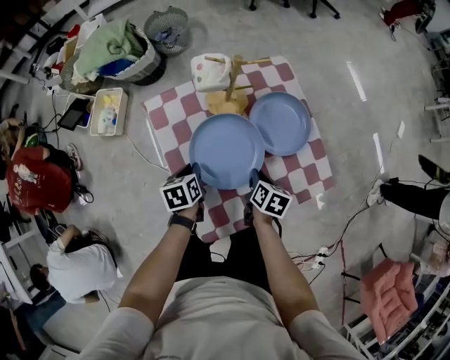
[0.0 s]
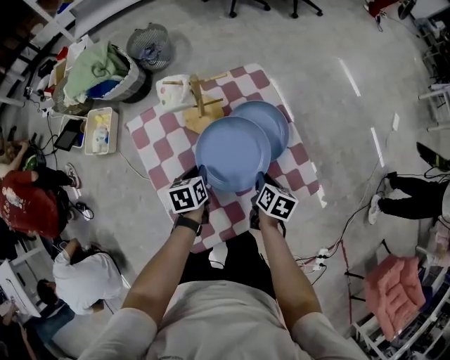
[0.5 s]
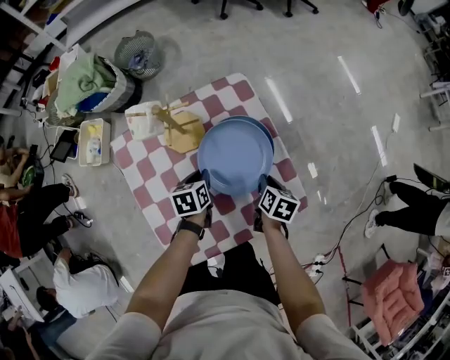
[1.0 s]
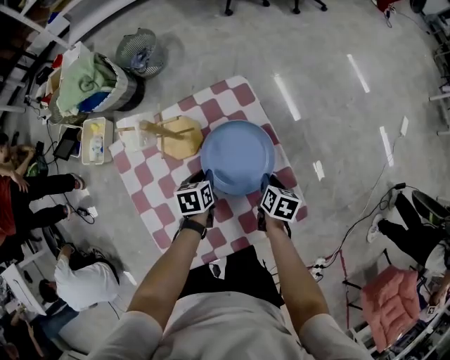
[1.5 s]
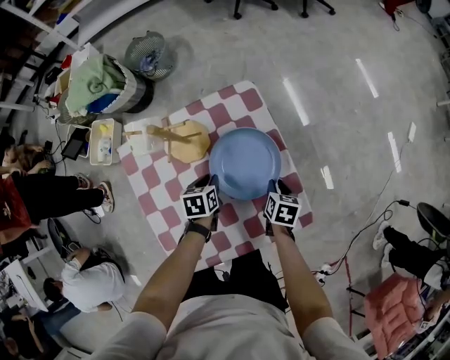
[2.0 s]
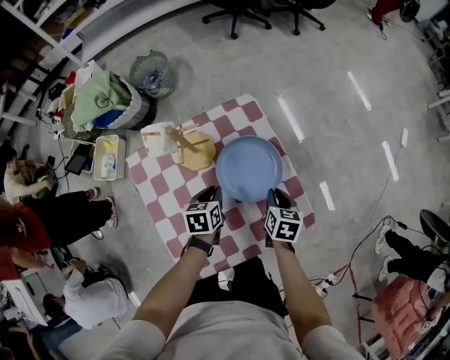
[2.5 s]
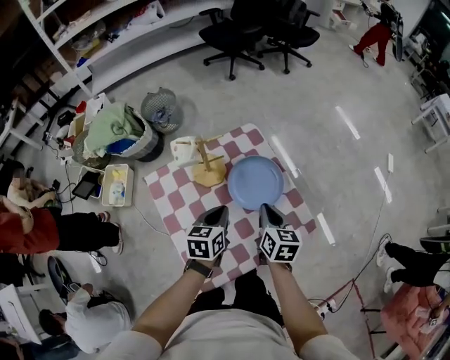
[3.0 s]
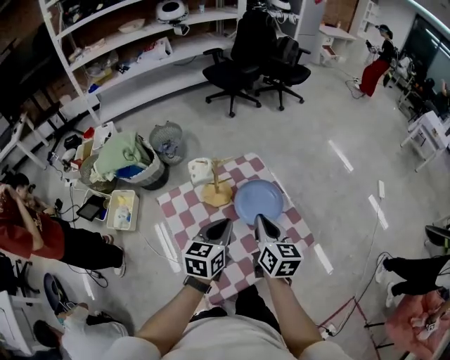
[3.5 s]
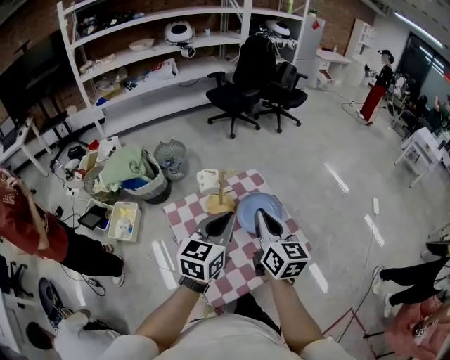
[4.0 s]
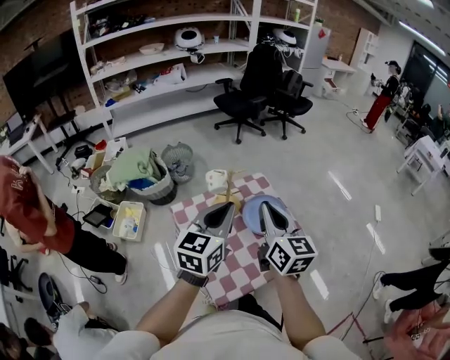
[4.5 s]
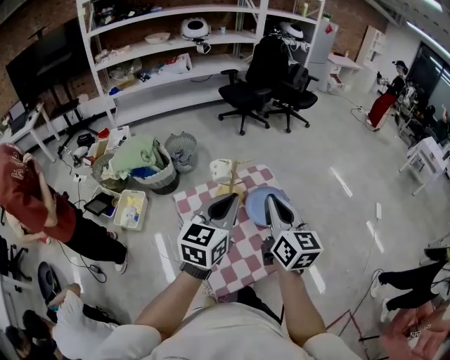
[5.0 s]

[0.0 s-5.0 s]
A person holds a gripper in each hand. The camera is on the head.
0.0 to 2.5 s: Both grippers move to the right and forward, some 20 cm.
2.5 to 5.0 s: The left gripper heads upward, covering approximately 40 cm, and points its fingers roughly 50 degrees further upward. Meanwhile the right gripper heads upward, to the left and backward, covering about 50 cm, and angles its fingers upward, by about 50 degrees.

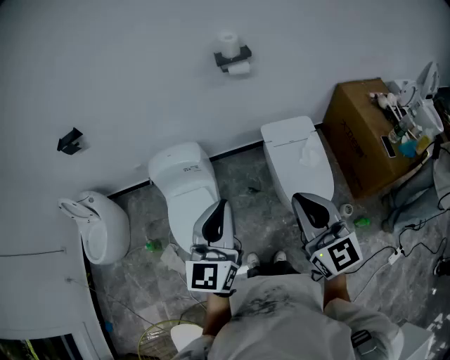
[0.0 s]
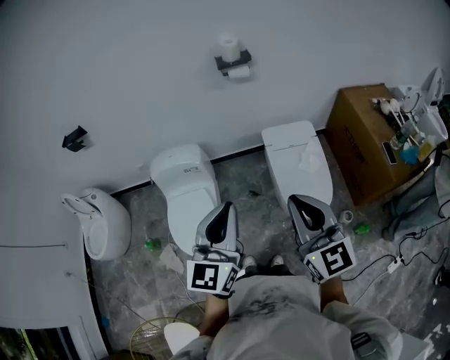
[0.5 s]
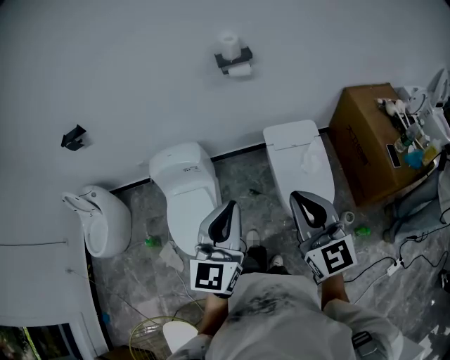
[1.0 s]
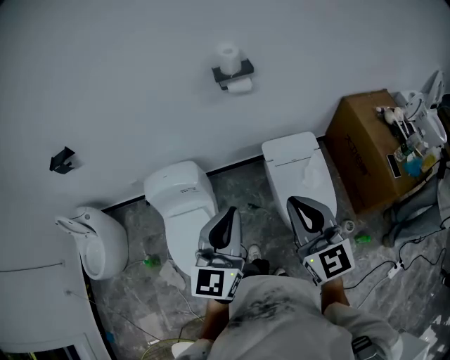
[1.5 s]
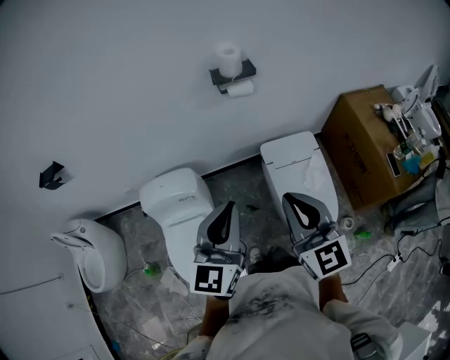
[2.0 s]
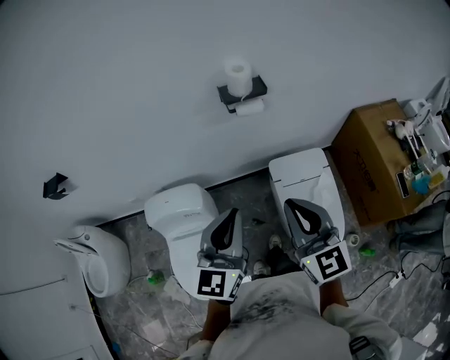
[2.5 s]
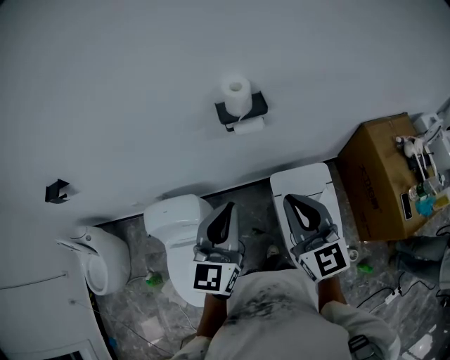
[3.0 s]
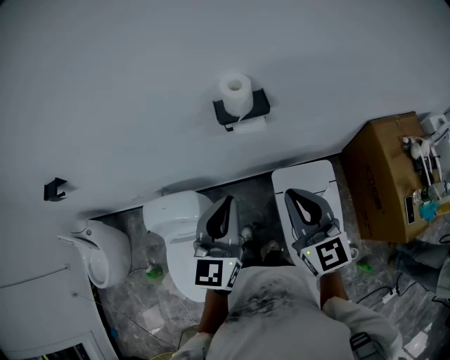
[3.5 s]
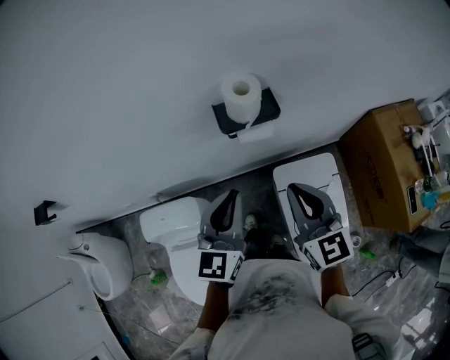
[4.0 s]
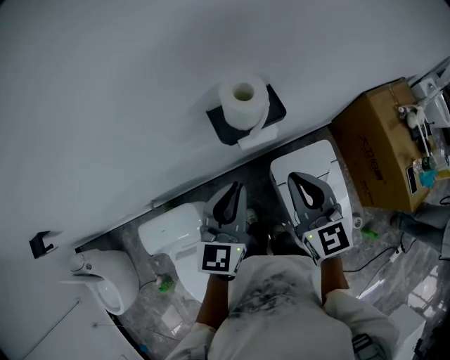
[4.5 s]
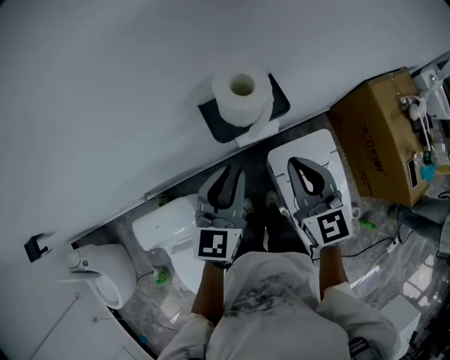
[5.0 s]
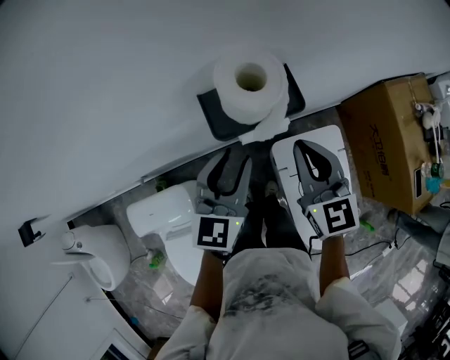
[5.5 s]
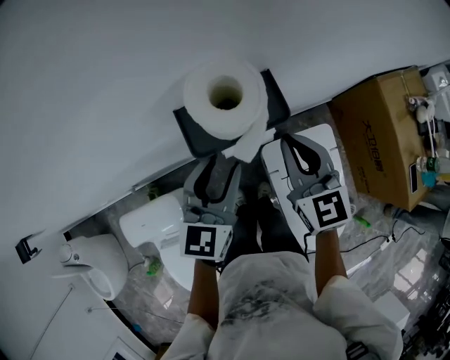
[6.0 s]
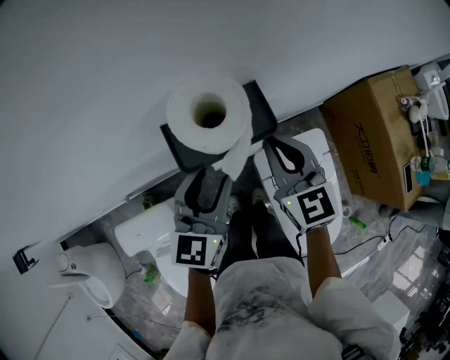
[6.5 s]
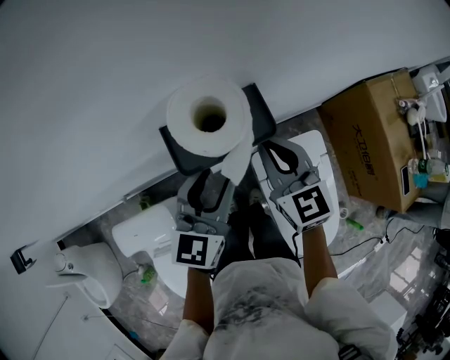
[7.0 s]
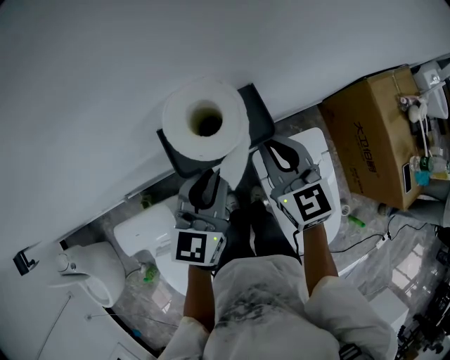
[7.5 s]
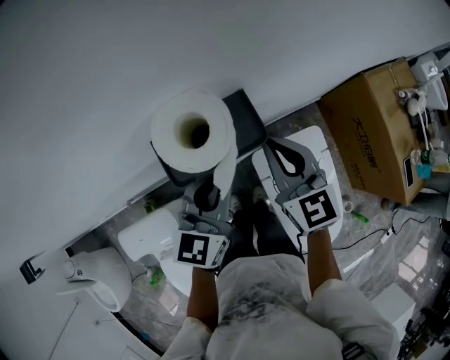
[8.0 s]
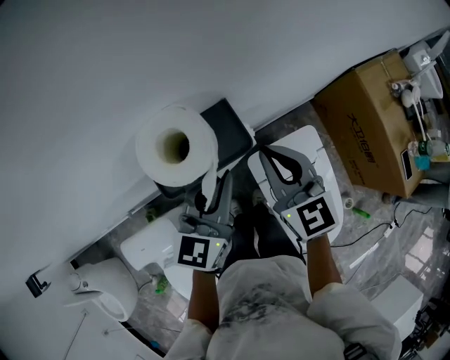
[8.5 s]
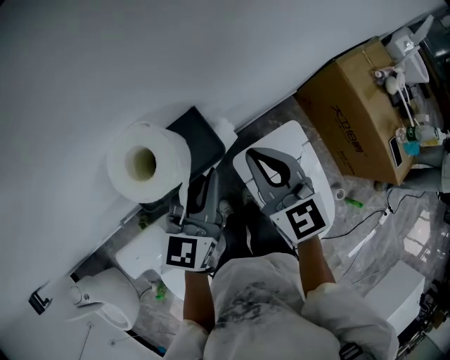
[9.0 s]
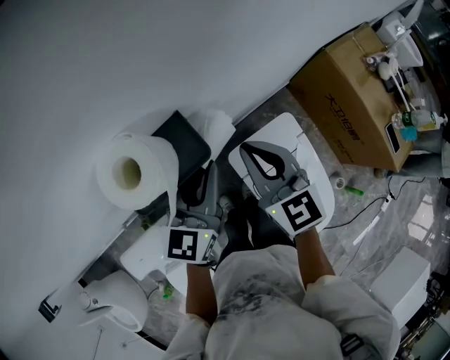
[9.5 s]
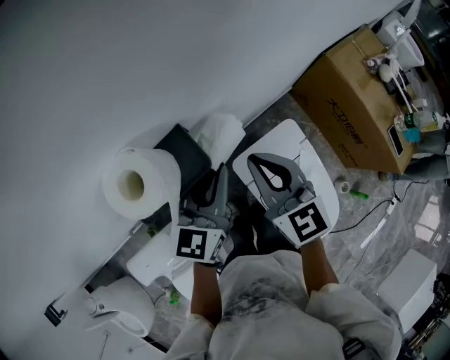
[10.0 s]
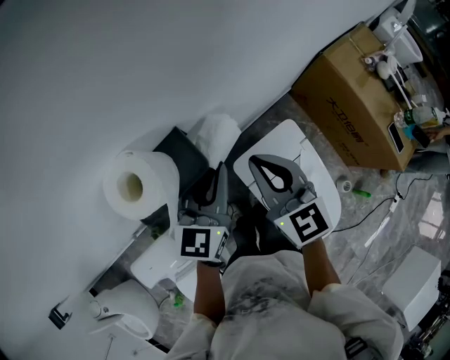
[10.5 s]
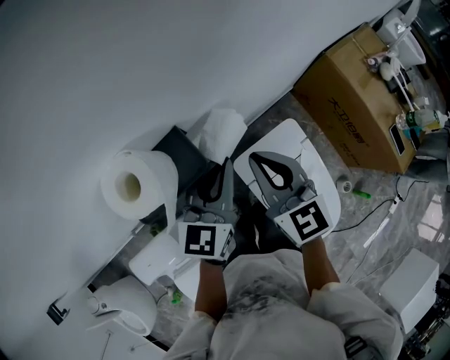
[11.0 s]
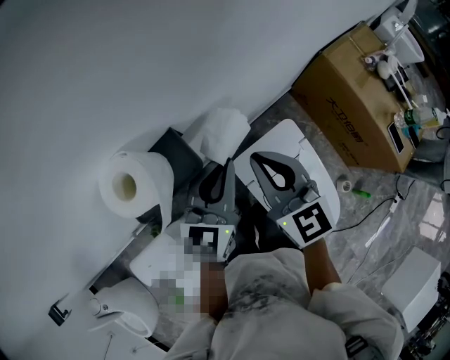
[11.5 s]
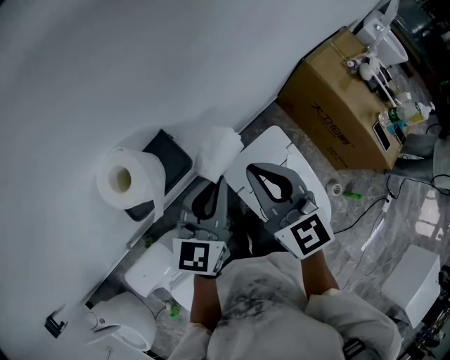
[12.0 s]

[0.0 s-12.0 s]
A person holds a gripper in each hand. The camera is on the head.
0.0 to 2.0 s: The grippers both shift forward by roughly 20 cm.
2.0 to 4.0 s: Both grippers travel together forward, approximately 30 cm.
4.0 to 6.0 s: Both grippers travel together forward and downward, about 20 cm. The left gripper opens its fingers.
6.0 to 8.0 s: The left gripper closes up.
8.0 to 10.0 s: The grippers both shift to the right by approximately 10 cm.
10.0 to 12.0 s: The right gripper travels upward by about 5 cm. Meanwhile the left gripper shifts by approximately 5 cm.

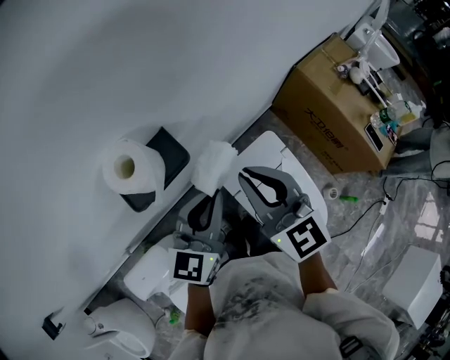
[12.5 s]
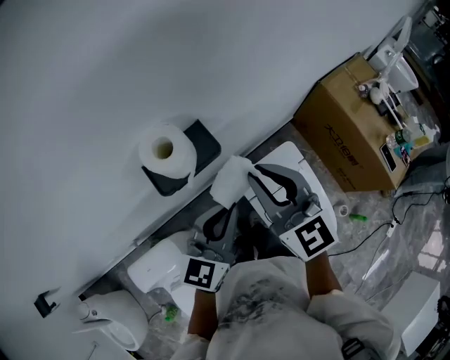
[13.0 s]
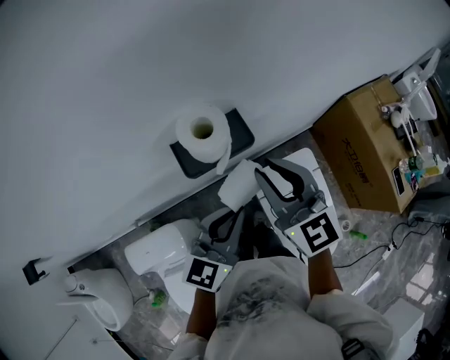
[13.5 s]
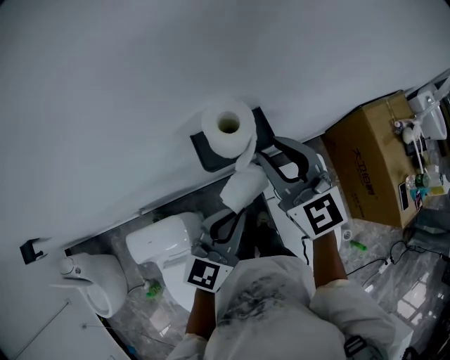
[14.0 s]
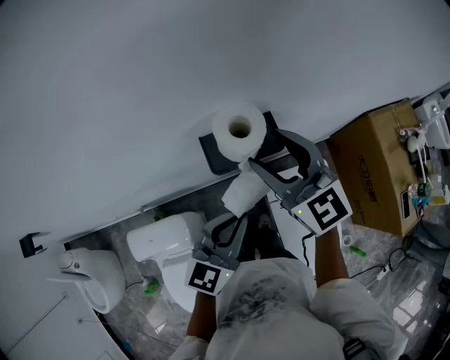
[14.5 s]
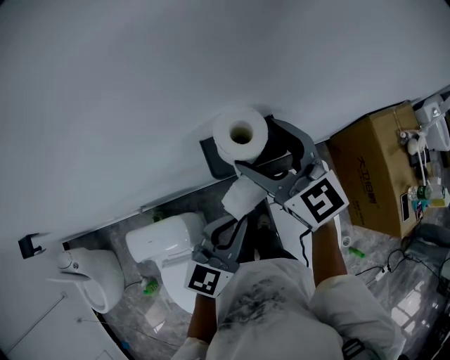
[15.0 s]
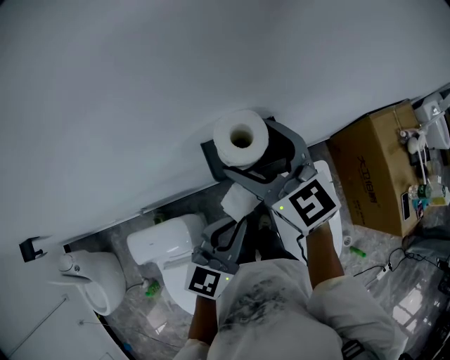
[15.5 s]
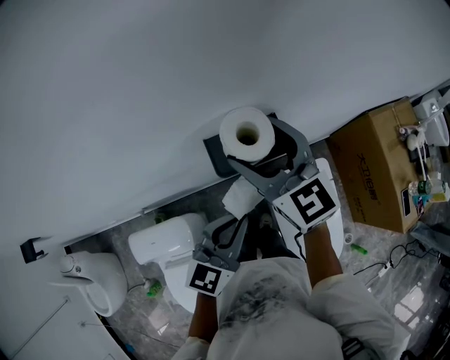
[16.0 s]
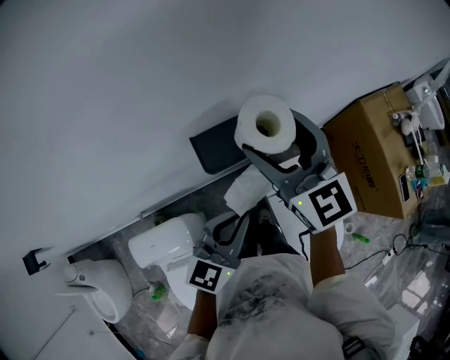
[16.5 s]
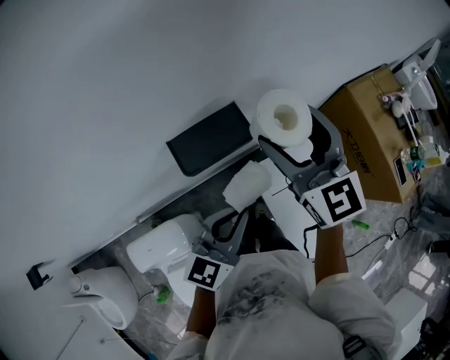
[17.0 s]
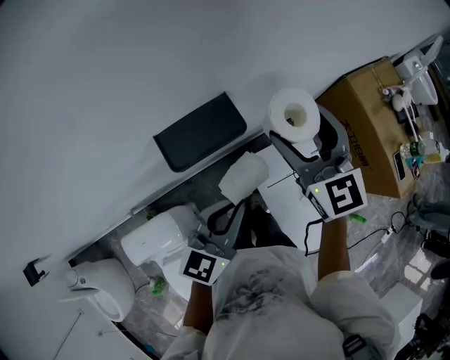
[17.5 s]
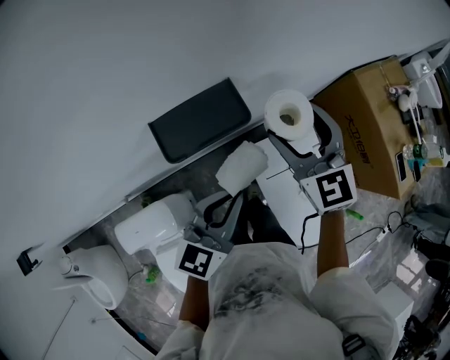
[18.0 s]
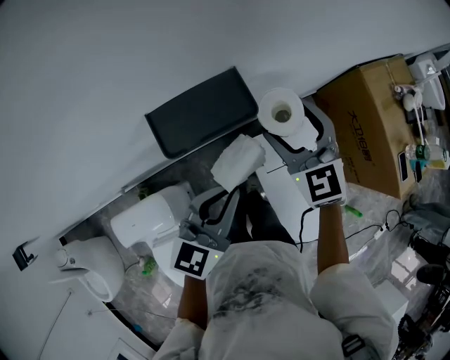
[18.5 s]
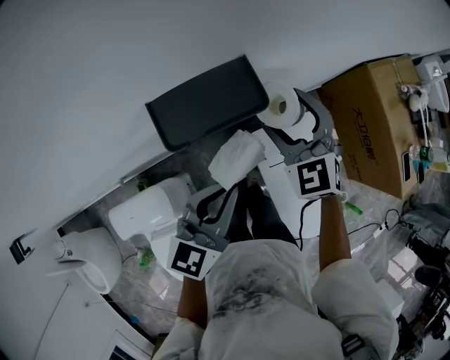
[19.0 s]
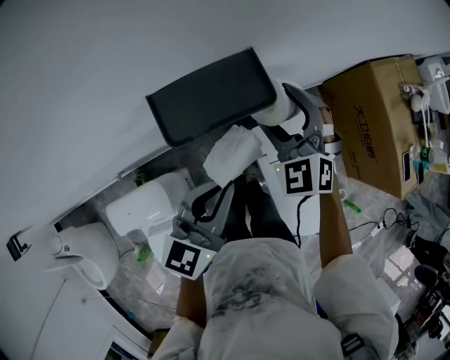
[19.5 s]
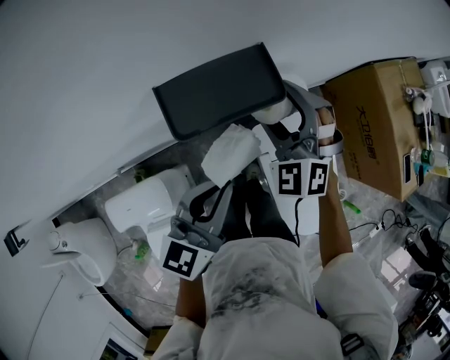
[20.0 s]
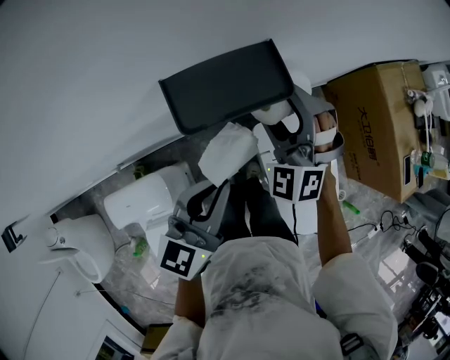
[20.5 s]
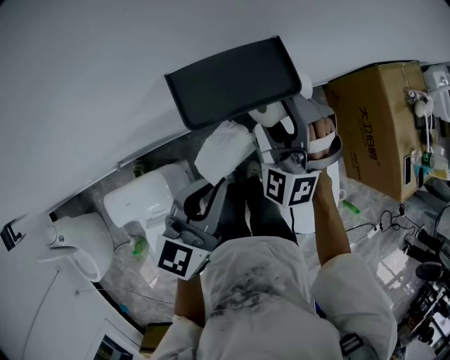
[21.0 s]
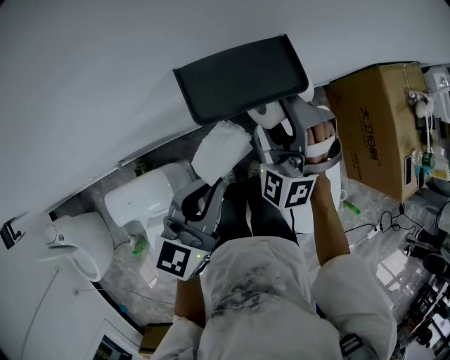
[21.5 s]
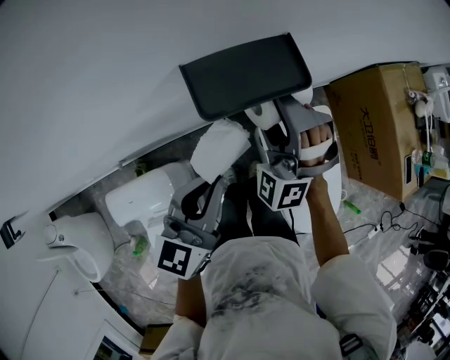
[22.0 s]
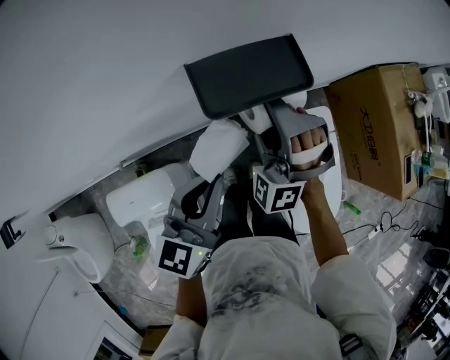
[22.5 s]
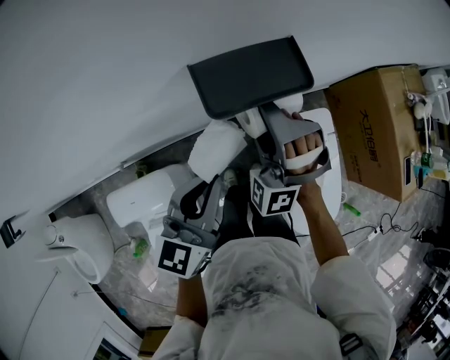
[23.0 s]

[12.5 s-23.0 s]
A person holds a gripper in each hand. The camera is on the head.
12.5 to 14.5 s: The right gripper moves to the left, roughly 15 cm, turns by about 30 degrees, and opens, while the left gripper moves to the left and backward, about 10 cm.
14.5 to 16.5 s: There are only small adjustments of the grippers.
16.5 to 19.0 s: The left gripper shifts approximately 5 cm downward, while the right gripper heads downward, covering approximately 20 cm, and changes its angle by approximately 30 degrees.
19.0 to 21.0 s: Both grippers travel together to the left, approximately 5 cm. The right gripper turns by about 40 degrees.
21.0 to 23.0 s: The right gripper shifts by about 5 cm.
